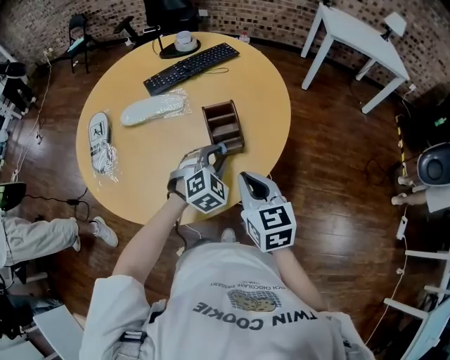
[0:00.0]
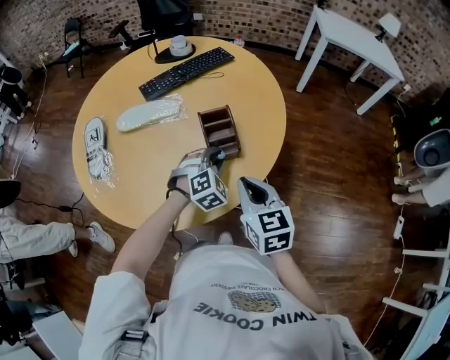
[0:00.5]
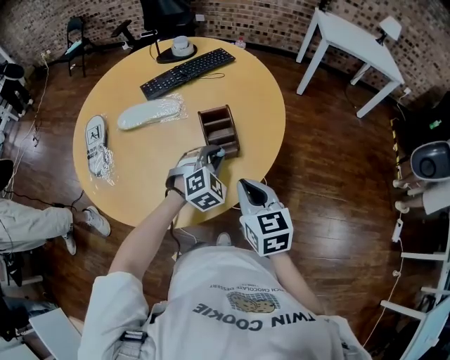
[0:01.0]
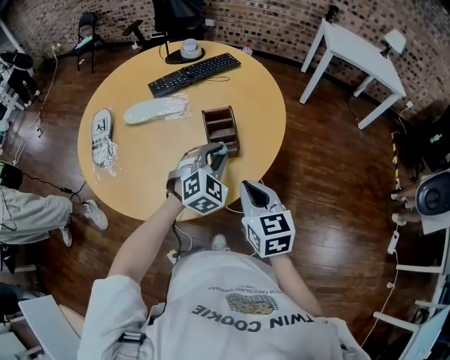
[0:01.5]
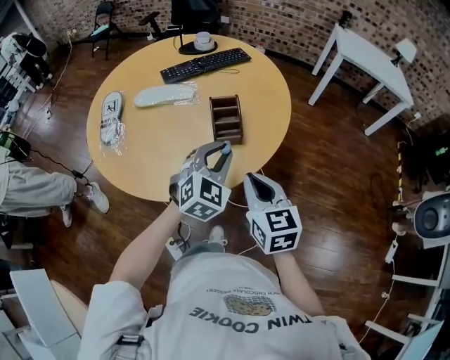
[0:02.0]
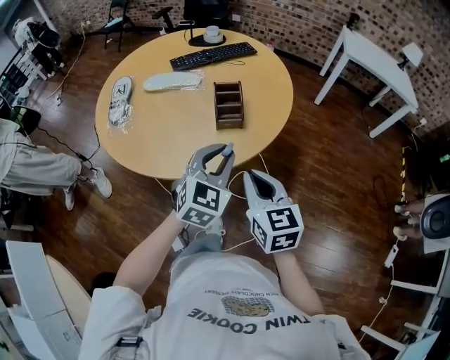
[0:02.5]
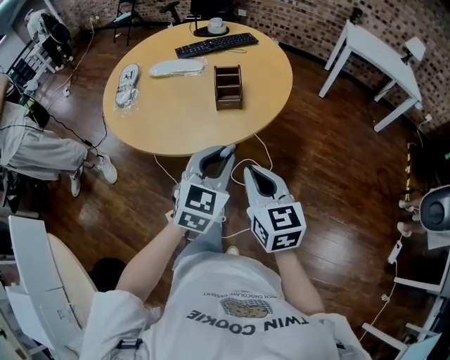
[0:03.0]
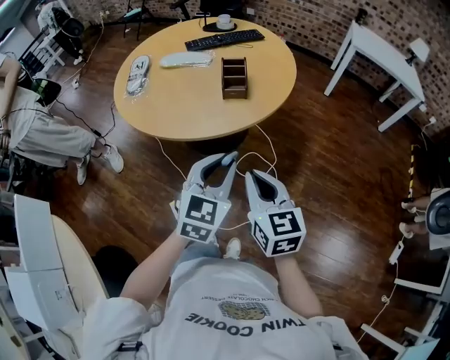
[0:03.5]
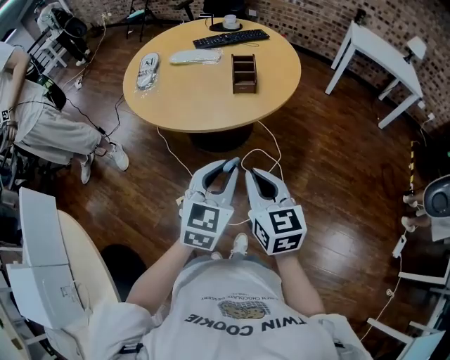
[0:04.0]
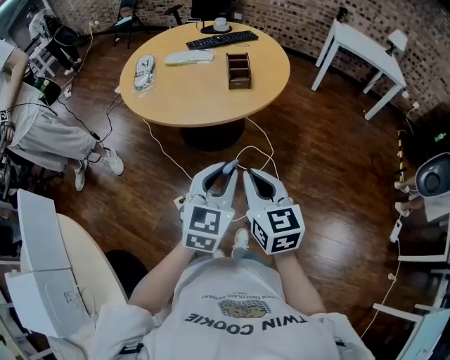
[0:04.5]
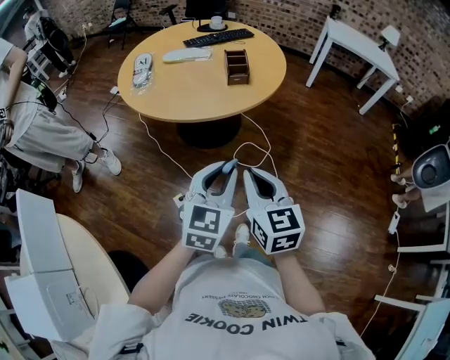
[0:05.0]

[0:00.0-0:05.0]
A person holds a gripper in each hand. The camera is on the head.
0:00.0 to 0:02.5: The left gripper heads backward and upward, covering approximately 20 cm, and turns by approximately 30 degrees; the right gripper moves backward, some 15 cm.
0:02.5 to 0:05.0: Both grippers travel together backward, roughly 30 cm.

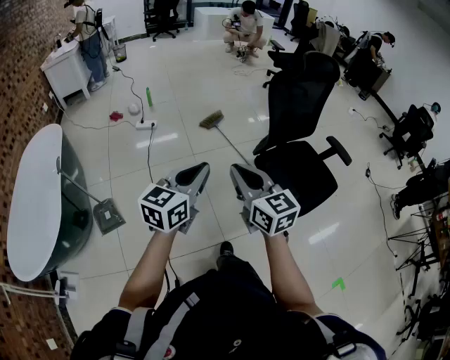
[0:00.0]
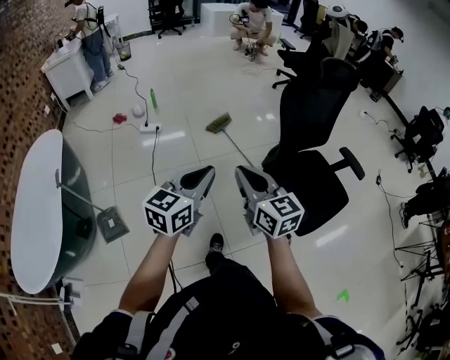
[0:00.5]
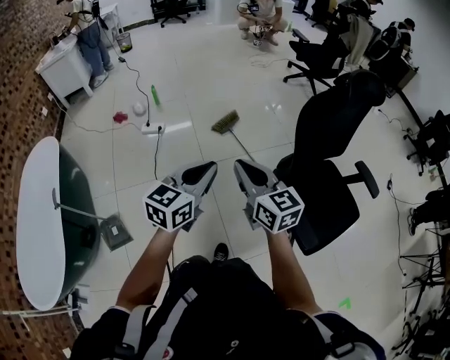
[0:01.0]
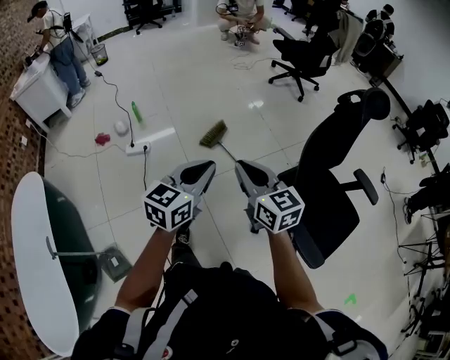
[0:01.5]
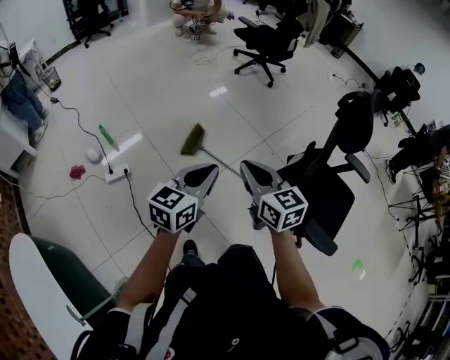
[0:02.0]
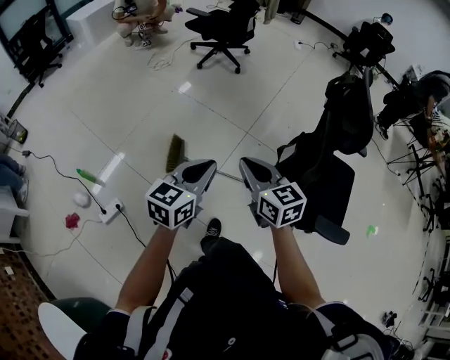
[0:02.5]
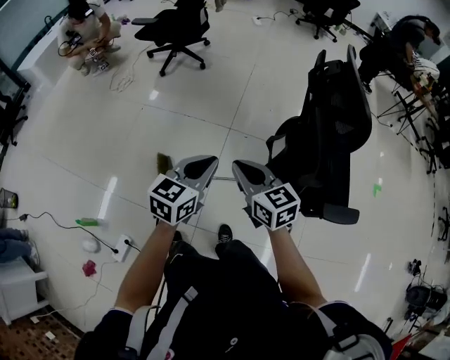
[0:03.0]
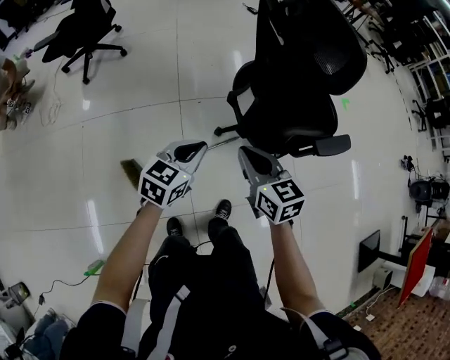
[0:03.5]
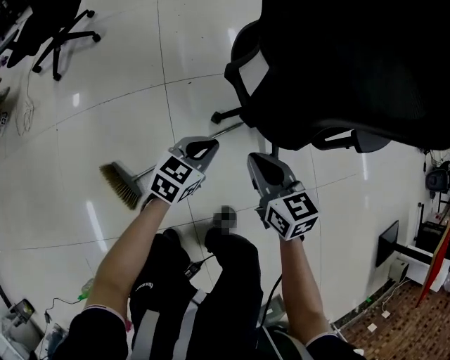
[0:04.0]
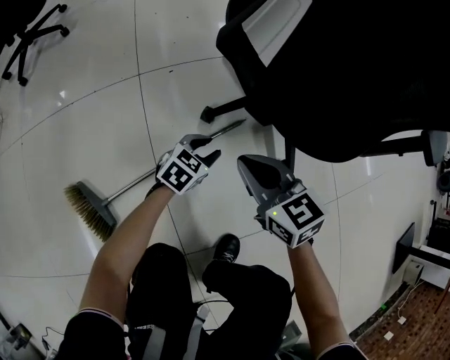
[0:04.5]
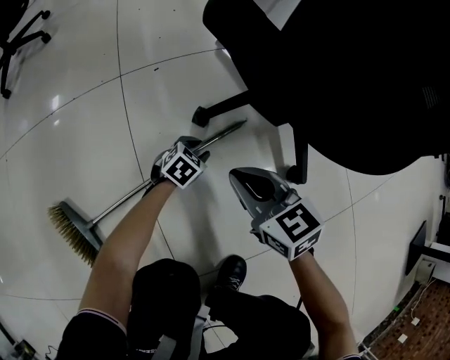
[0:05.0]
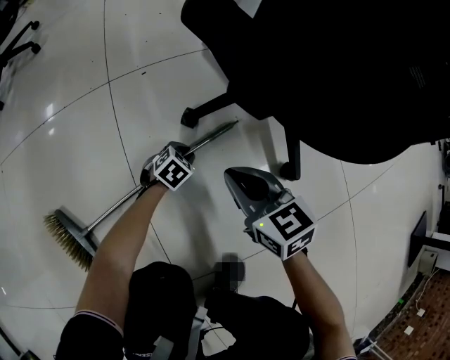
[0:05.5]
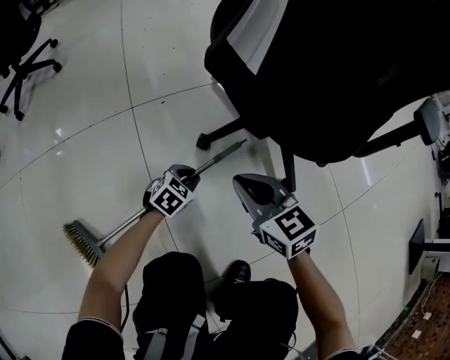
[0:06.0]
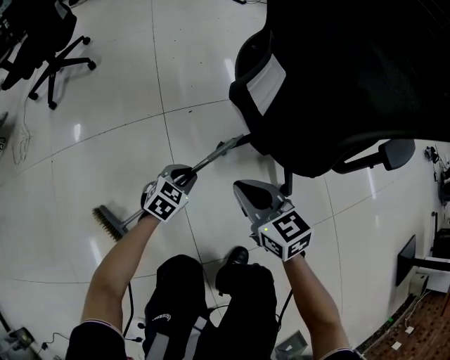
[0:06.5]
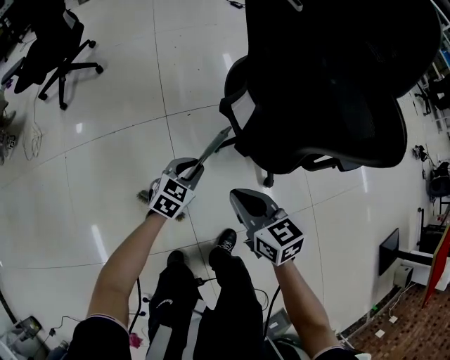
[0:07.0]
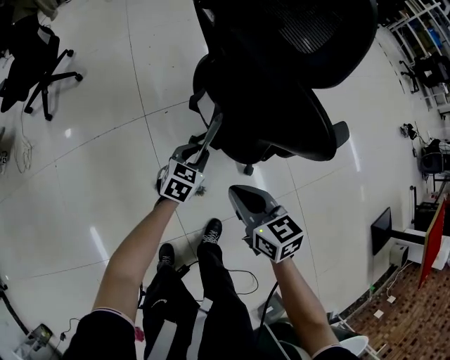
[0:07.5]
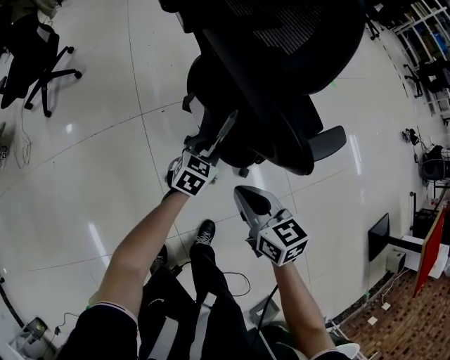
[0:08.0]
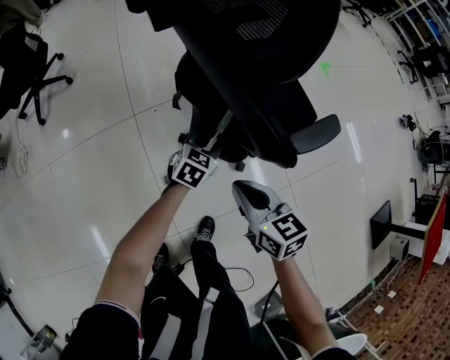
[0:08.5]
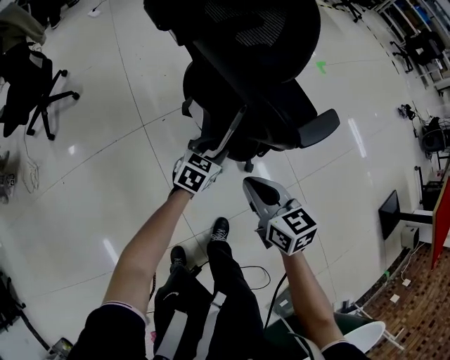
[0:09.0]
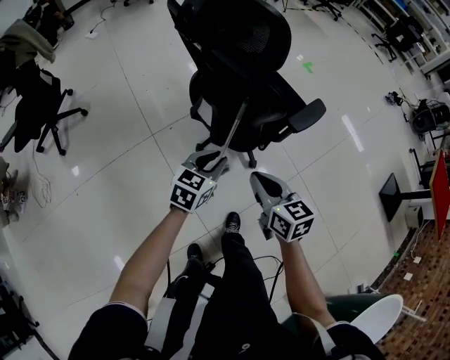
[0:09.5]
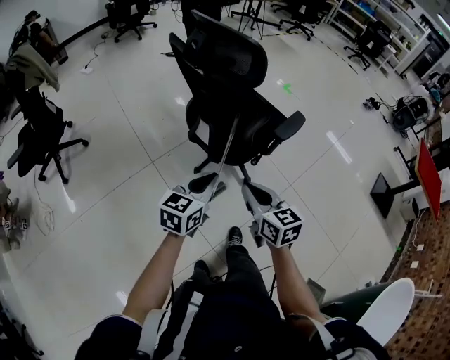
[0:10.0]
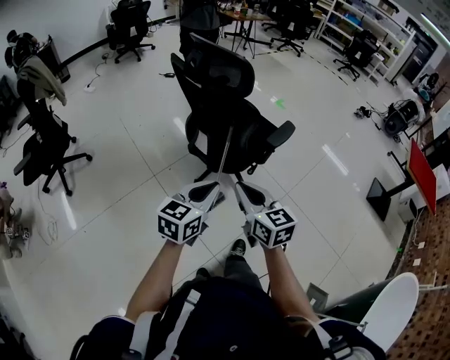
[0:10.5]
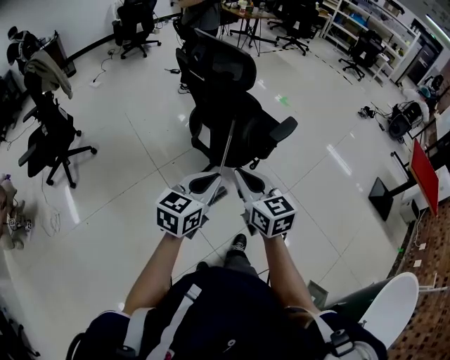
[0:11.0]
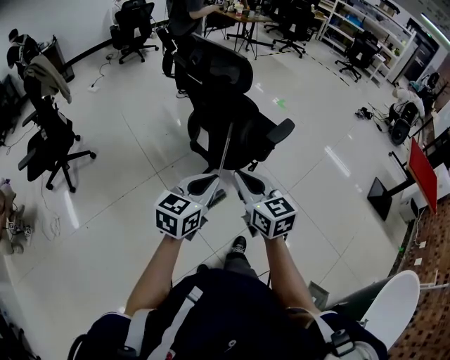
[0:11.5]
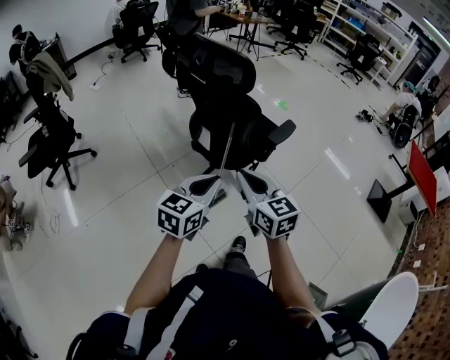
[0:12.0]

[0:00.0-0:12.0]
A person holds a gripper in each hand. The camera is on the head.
0:00.0 to 0:02.0: The pair of grippers is taken forward, approximately 50 cm. The left gripper changes its angle by about 30 degrees; the right gripper swivels about 30 degrees.
0:02.0 to 0:04.0: The grippers both shift downward by about 35 cm. The left gripper rotates approximately 80 degrees, while the right gripper swivels roughly 60 degrees.
0:04.0 to 0:06.0: The left gripper moves downward, some 40 cm, and swivels some 30 degrees, while the right gripper goes some 25 cm downward.
0:06.0 to 0:08.0: Both grippers move upward, approximately 40 cm.
0:08.0 to 0:10.0: The right gripper is displaced upward, backward and to the left by roughly 20 cm, and swivels roughly 30 degrees; the left gripper travels upward and backward by approximately 35 cm, and turns by approximately 20 degrees.
0:10.0 to 0:12.0: The grippers both shift upward and backward by about 10 cm.

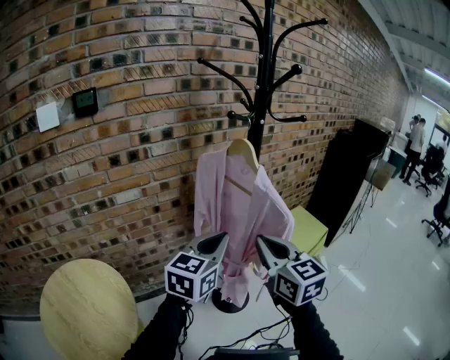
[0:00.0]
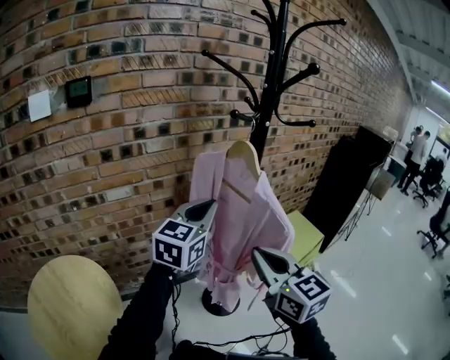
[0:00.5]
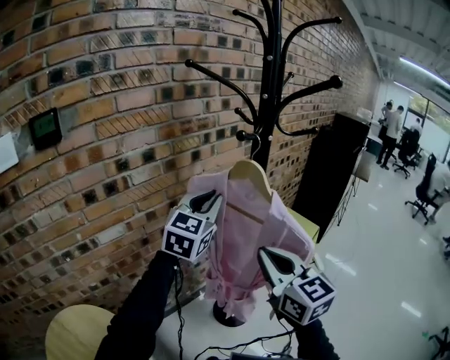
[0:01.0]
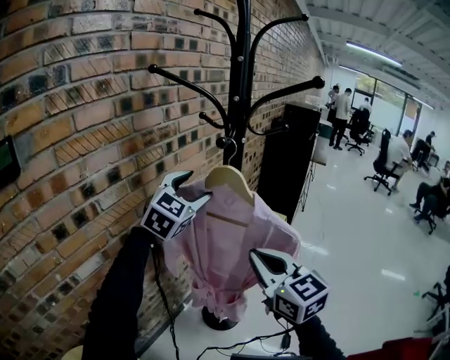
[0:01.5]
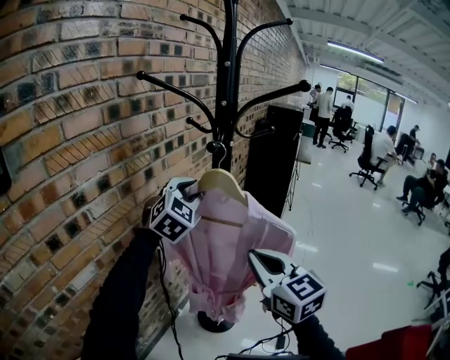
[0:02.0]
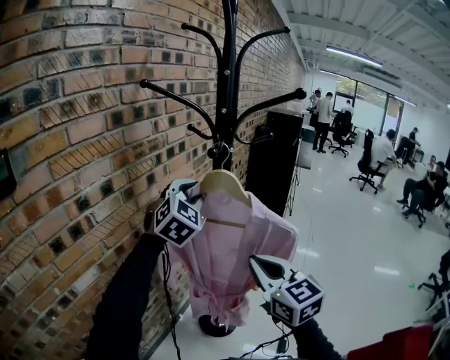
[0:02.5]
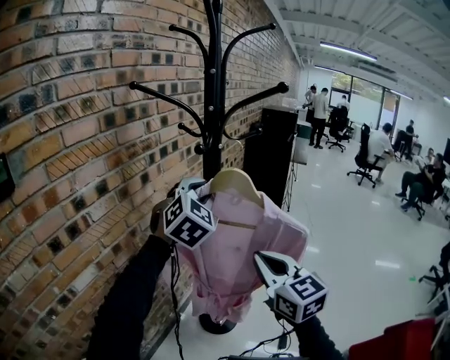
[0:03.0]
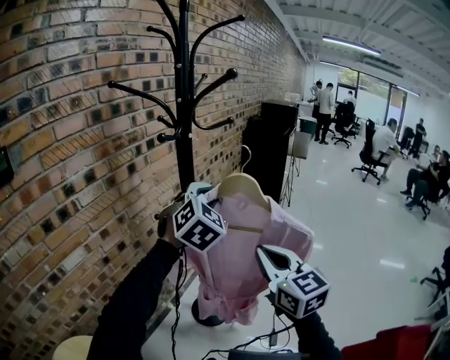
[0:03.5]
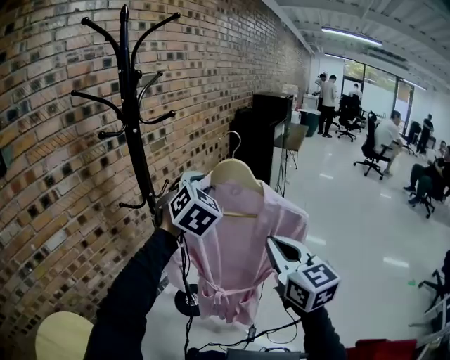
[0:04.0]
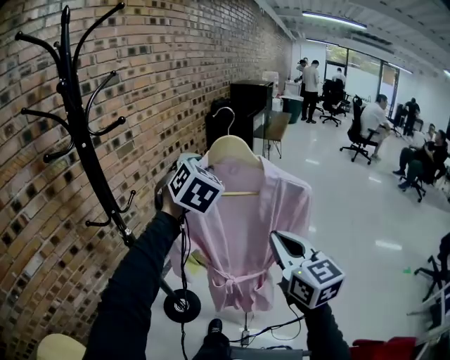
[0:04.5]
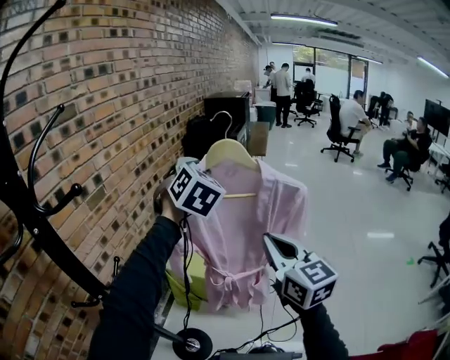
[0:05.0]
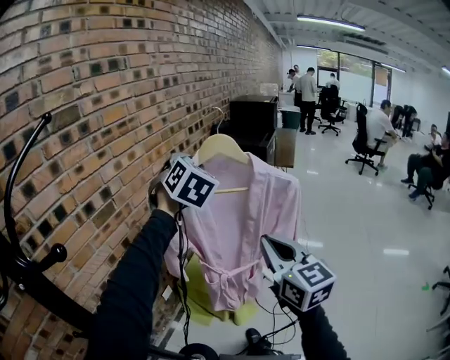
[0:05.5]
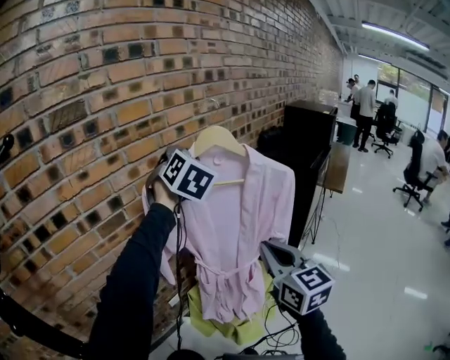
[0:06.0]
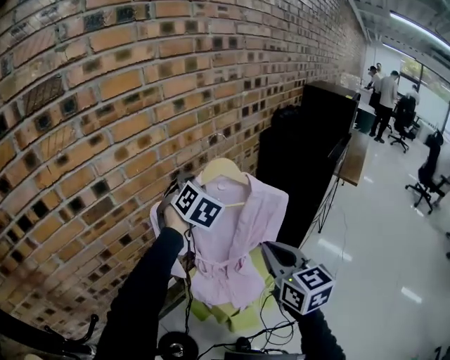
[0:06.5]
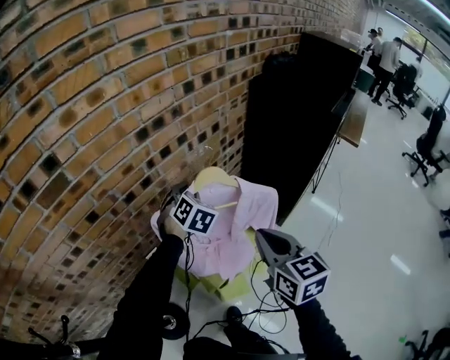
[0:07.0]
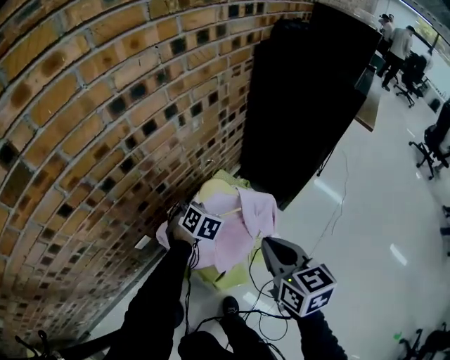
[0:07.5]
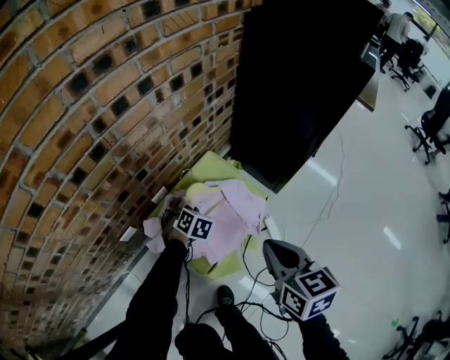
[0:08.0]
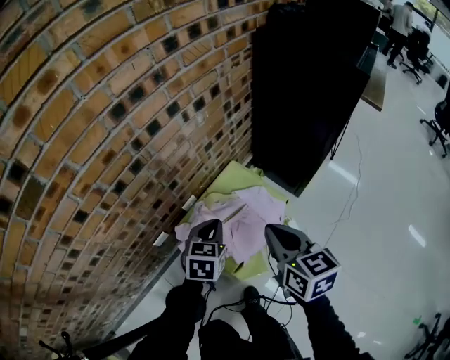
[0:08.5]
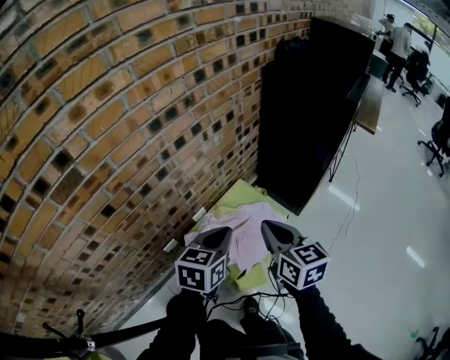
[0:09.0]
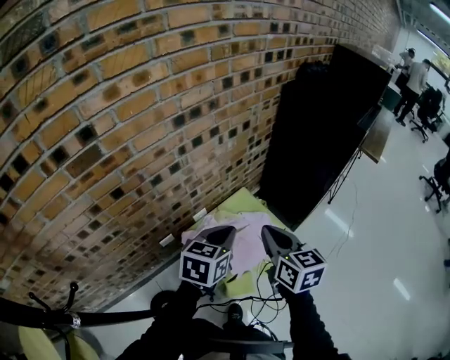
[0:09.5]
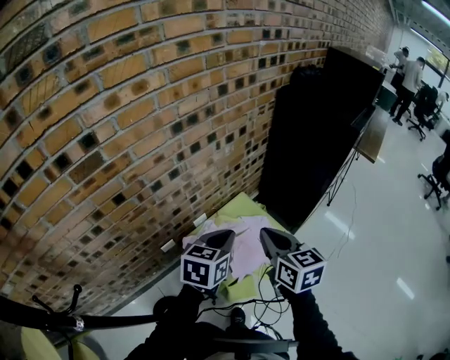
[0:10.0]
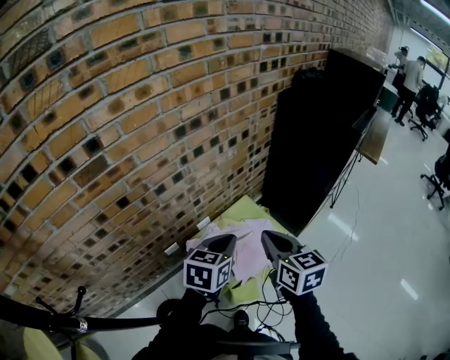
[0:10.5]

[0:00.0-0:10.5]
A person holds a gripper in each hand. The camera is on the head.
0:00.0 to 0:02.0: The left gripper changes place by roughly 30 cm, twists about 50 degrees clockwise, seen from behind, and opens. The right gripper moves approximately 10 cm, and swivels roughly 30 degrees.
0:02.0 to 0:04.0: The two grippers travel together, to the right, roughly 40 cm.
0:04.0 to 0:06.5: The two grippers travel together, approximately 90 cm. The left gripper changes its angle by about 30 degrees.
0:06.5 to 0:08.5: The left gripper moves downward, approximately 40 cm, turns by roughly 40 degrees, and closes, while the right gripper is displaced downward by approximately 25 cm, and changes its angle by approximately 20 degrees.
0:08.5 to 0:10.5: The left gripper moves upward and backward, roughly 20 cm, while the right gripper heads upward, to the left and backward, covering approximately 15 cm.
